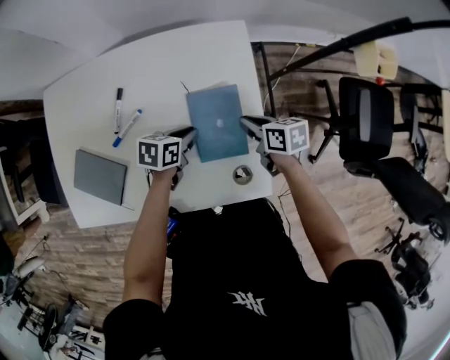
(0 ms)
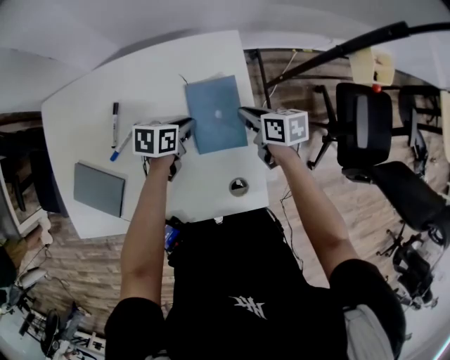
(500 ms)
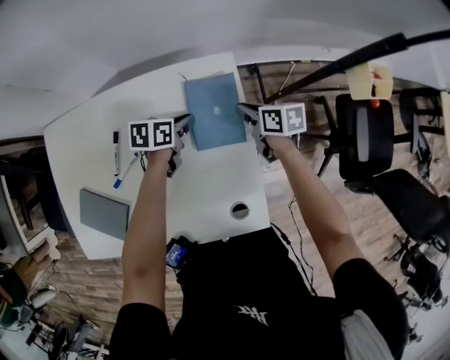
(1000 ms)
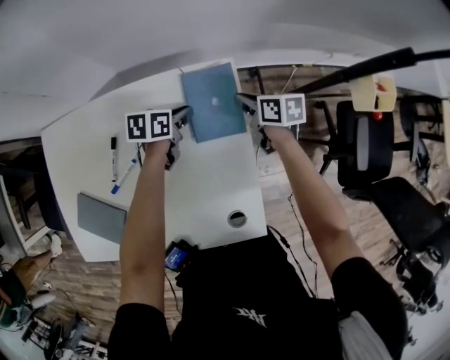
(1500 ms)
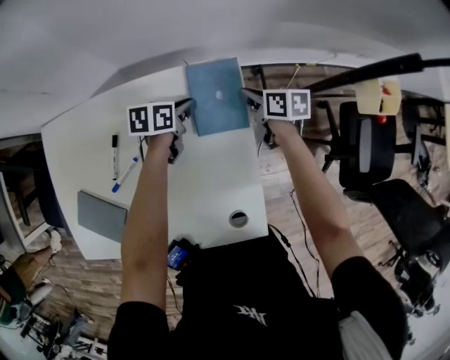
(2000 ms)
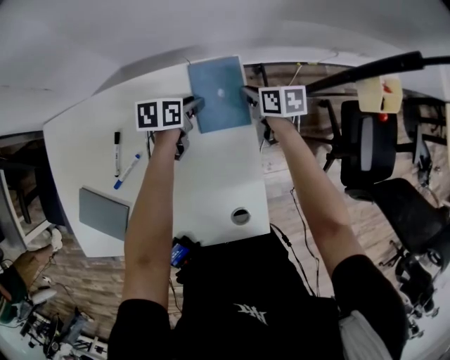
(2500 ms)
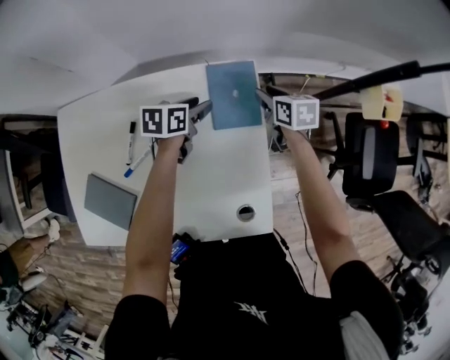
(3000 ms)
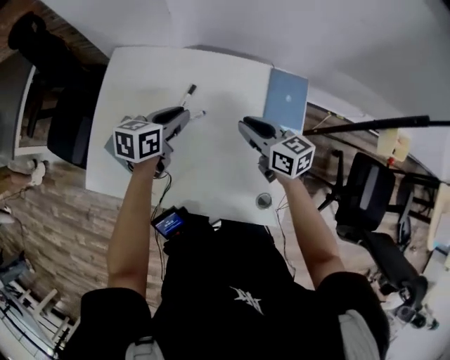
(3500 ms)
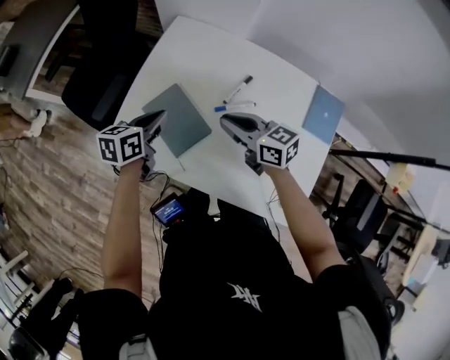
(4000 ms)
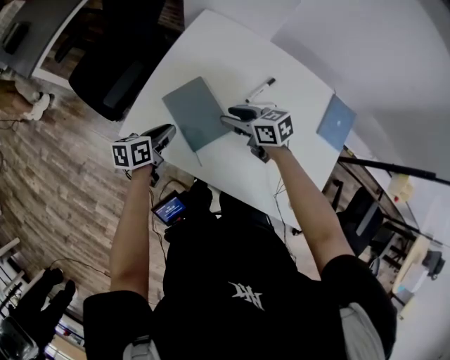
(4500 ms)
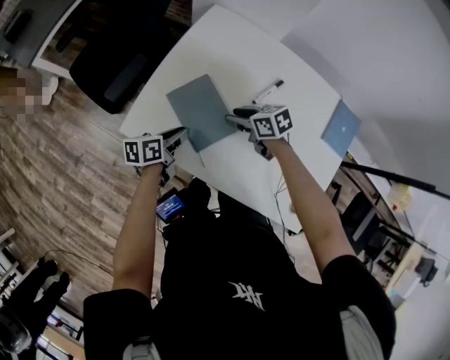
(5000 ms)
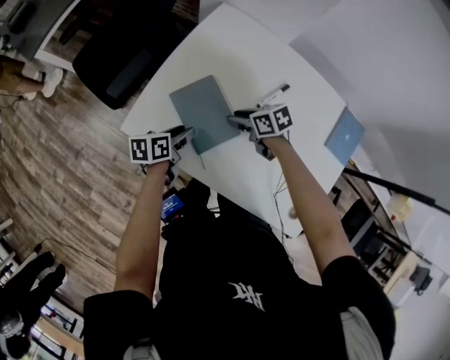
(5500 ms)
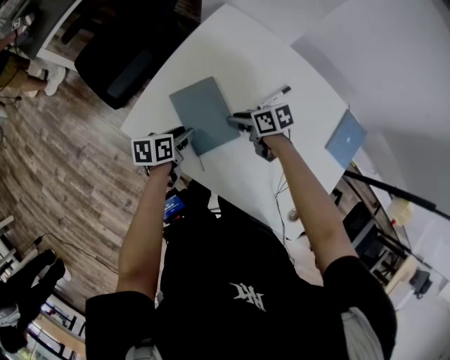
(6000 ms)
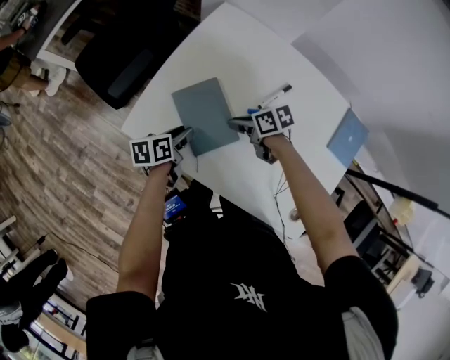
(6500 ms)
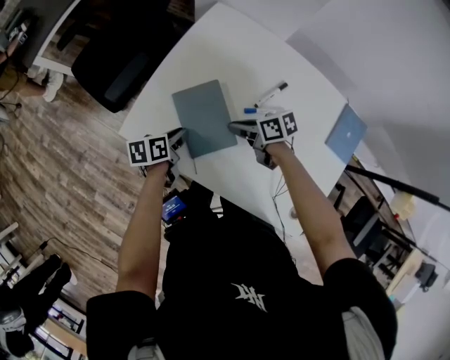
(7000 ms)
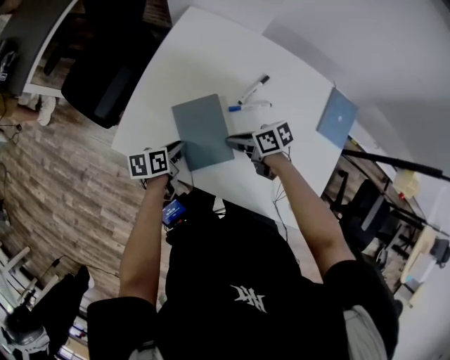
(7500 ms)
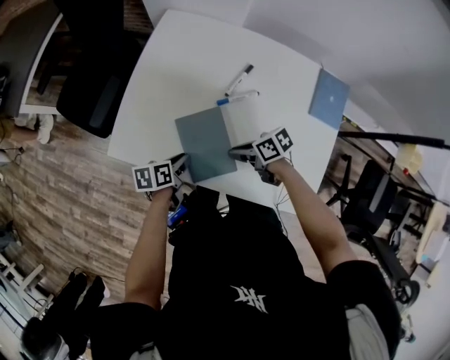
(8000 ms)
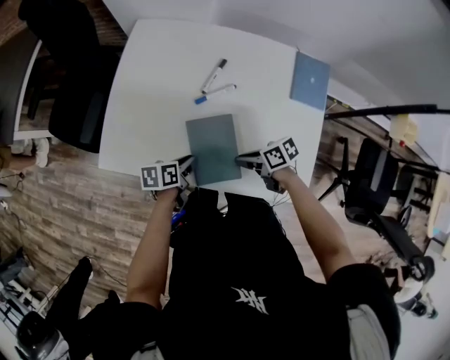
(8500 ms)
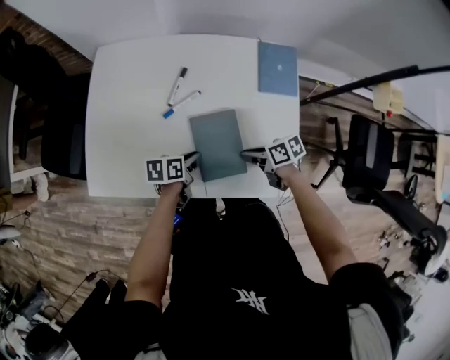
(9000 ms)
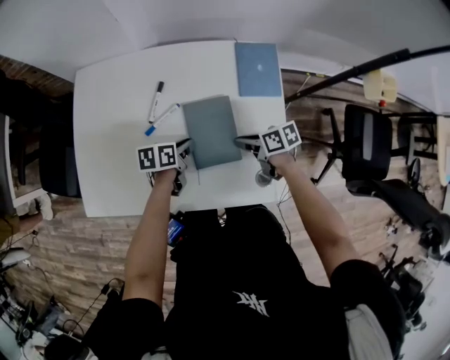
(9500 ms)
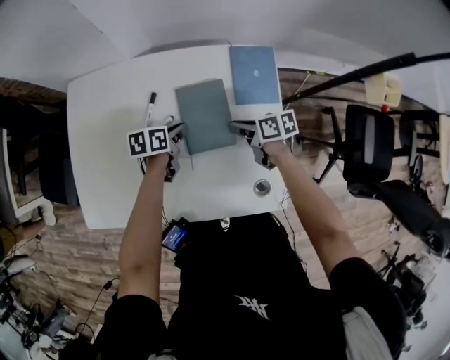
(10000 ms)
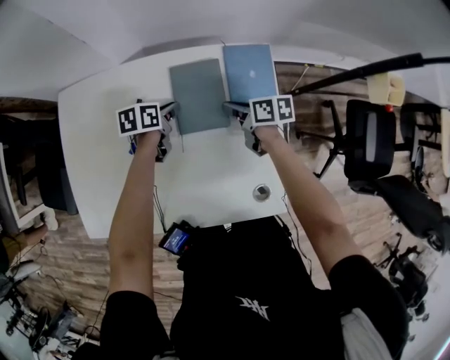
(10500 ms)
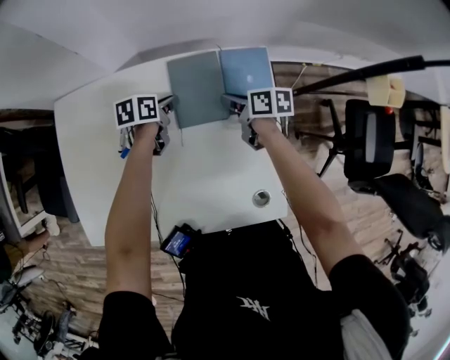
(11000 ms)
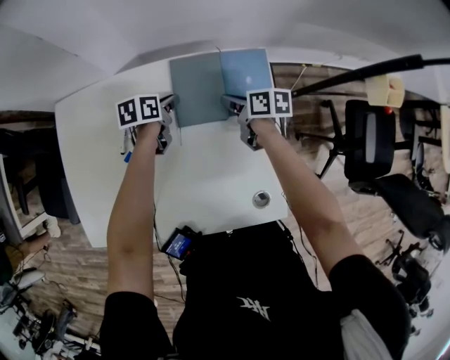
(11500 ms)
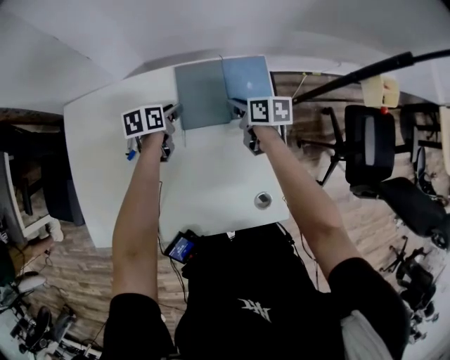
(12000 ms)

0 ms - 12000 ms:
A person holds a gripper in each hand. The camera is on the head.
0 ms - 2000 ms: The two grippers go some 20 cm forward.
2000 ms - 4000 ms: The two grippers travel together, roughly 50 cm. The right gripper rotates some 60 degrees, and opens, then closes once more. The left gripper rotates roughly 40 degrees, and opens, then closes once more.
4000 ms - 6000 ms: The grippers both shift downward by approximately 15 cm. The left gripper rotates some 20 degrees, and opens its fingers. The right gripper swivels approximately 40 degrees, and opens.
6000 ms - 8000 ms: The right gripper shifts by about 15 cm, and closes its fingers. The left gripper ends up roughly 10 cm from where it was, and closes up.
8000 ms - 10000 ms: The left gripper changes place by roughly 30 cm, and turns by some 30 degrees; the right gripper changes place by approximately 25 cm, and swivels approximately 40 degrees.
10000 ms - 12000 ms: Both grippers move forward, roughly 10 cm.

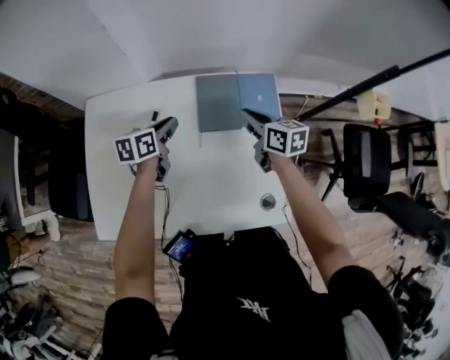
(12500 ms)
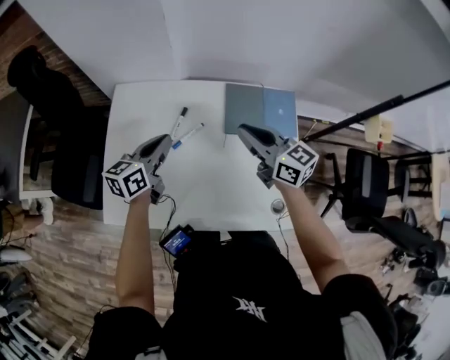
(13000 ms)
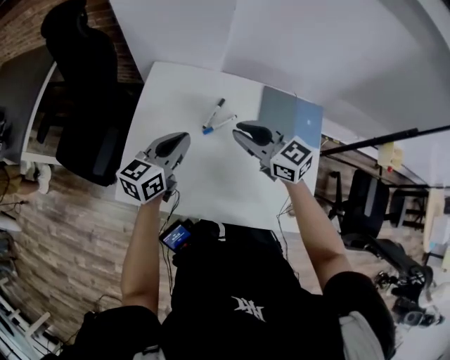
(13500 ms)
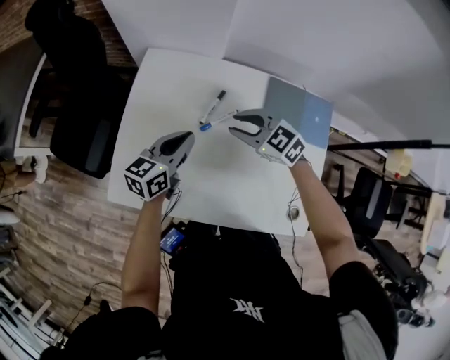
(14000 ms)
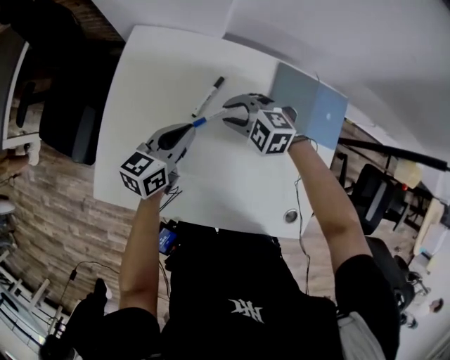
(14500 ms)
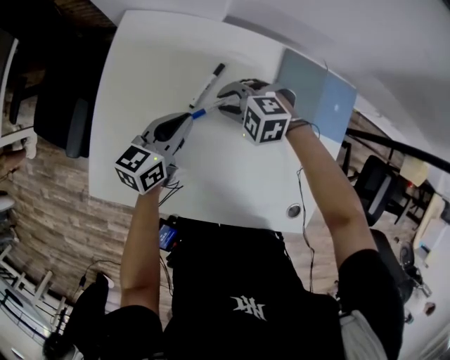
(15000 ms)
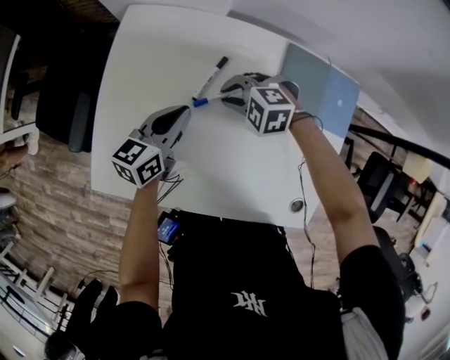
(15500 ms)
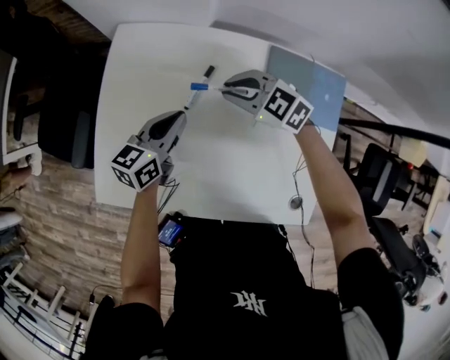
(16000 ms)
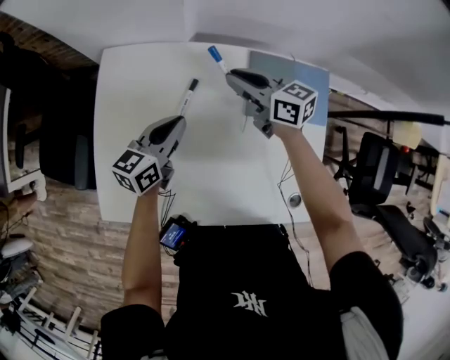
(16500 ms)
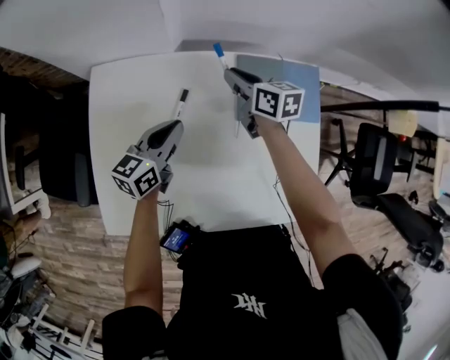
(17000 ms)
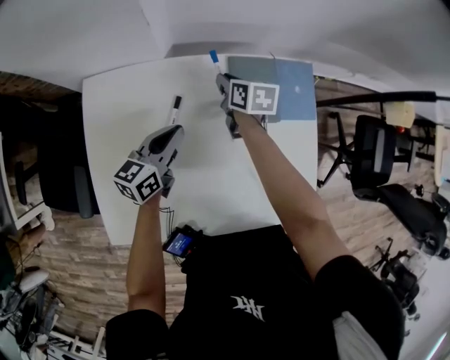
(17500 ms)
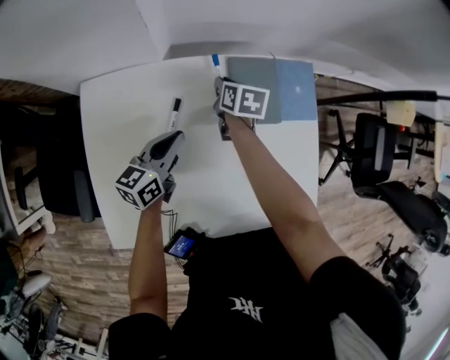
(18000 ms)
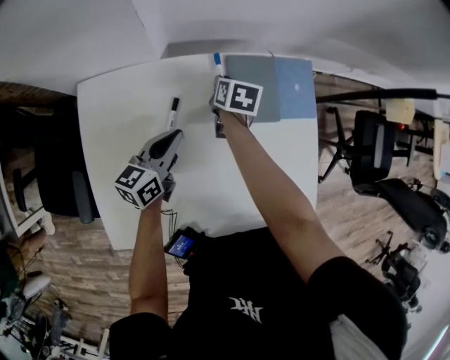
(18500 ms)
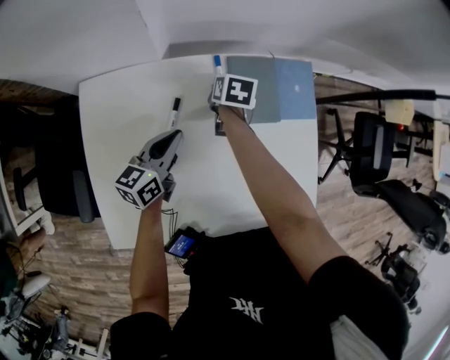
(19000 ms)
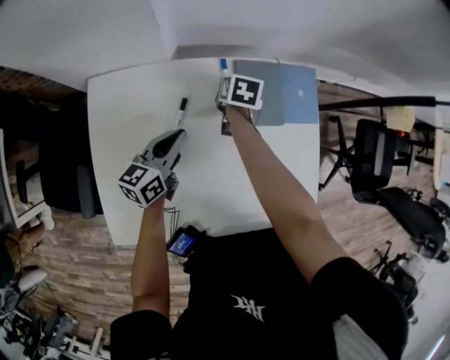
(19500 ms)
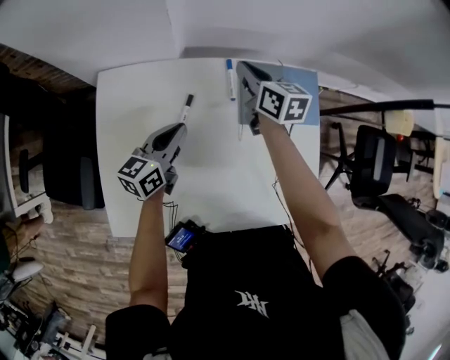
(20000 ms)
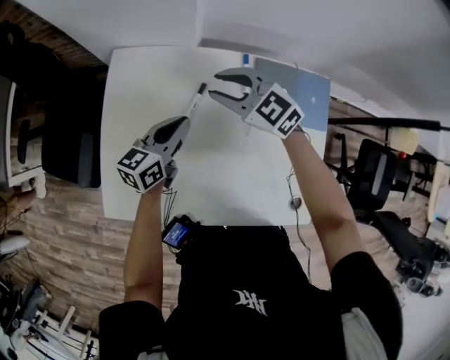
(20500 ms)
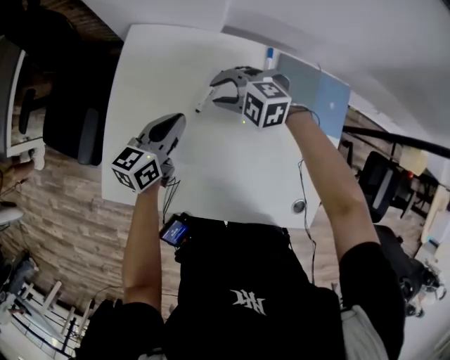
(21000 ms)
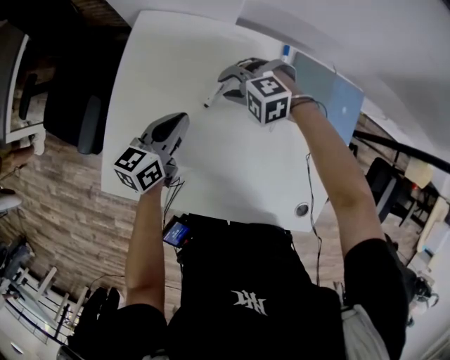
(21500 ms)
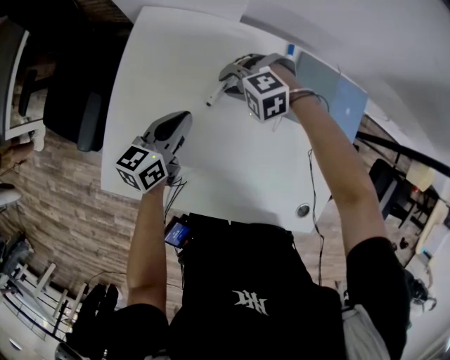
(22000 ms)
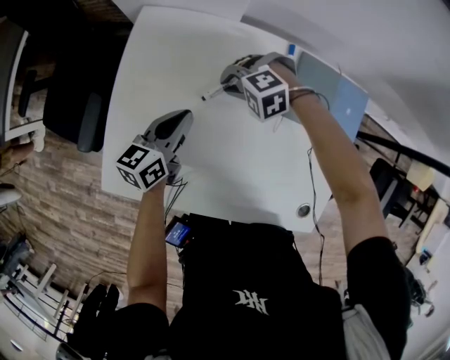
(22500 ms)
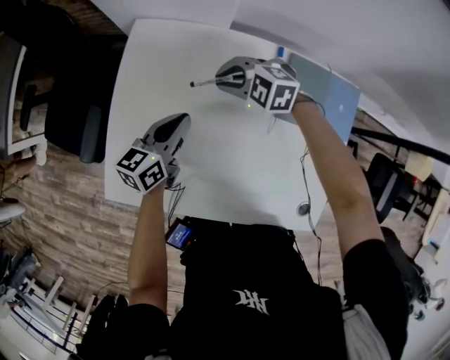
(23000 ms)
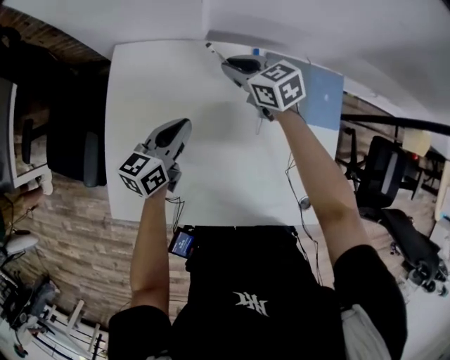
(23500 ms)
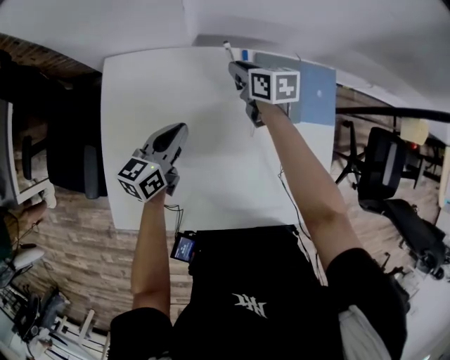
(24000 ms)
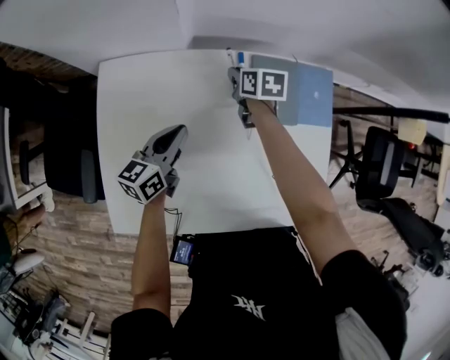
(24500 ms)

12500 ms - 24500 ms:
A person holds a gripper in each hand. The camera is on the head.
12500 ms - 14500 ms: The left gripper moves some 10 cm upward and comes back, while the right gripper changes place by approximately 30 cm, twists roughly 80 degrees counterclockwise, seen from behind, and opens up.
14500 ms - 16500 ms: The right gripper shifts roughly 15 cm to the right, upward and forward, and rotates around the line of its fingers by roughly 60 degrees, clockwise from behind.
16500 ms - 18500 ms: The right gripper shifts some 10 cm downward, and points its fingers approximately 30 degrees further downward.
18500 ms - 20500 ms: The right gripper ends up approximately 20 cm from where it was, and rotates approximately 90 degrees, while the left gripper ends up roughly 5 cm from where it was.
20500 ms - 22500 ms: The right gripper shifts approximately 15 cm downward, and tips its fingers downward by approximately 40 degrees, while the left gripper moves roughly 10 cm.
22500 ms - 24500 ms: The left gripper shifts by roughly 10 cm, while the right gripper travels upward and back again, approximately 10 cm each way, and rotates around the line of its fingers by some 120 degrees, clockwise from behind.

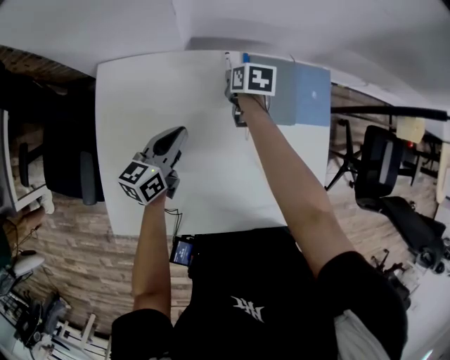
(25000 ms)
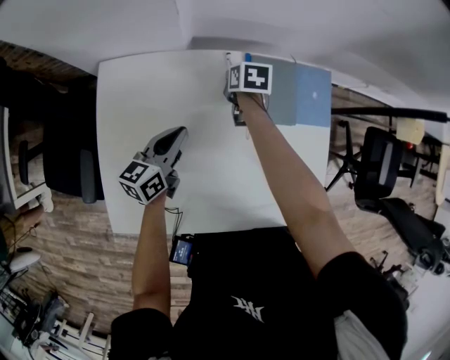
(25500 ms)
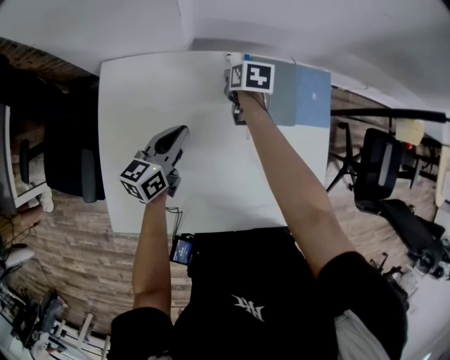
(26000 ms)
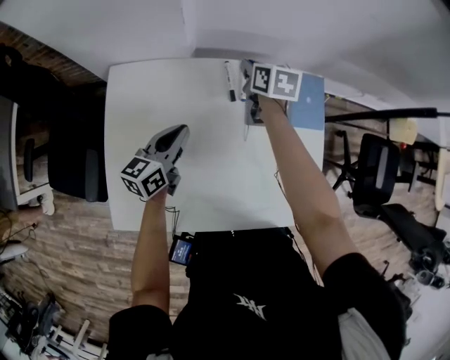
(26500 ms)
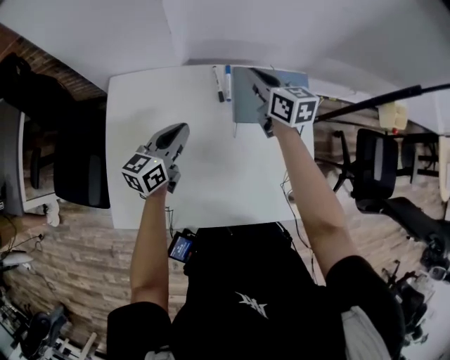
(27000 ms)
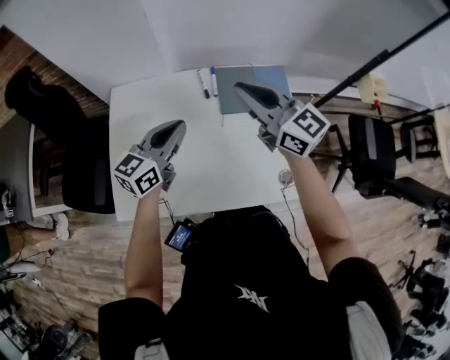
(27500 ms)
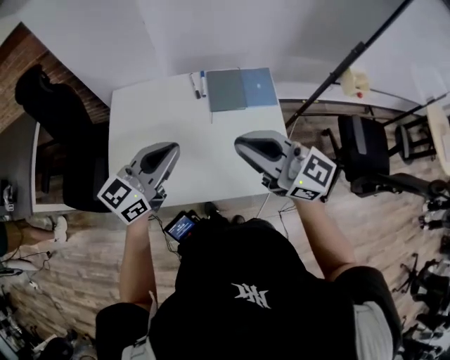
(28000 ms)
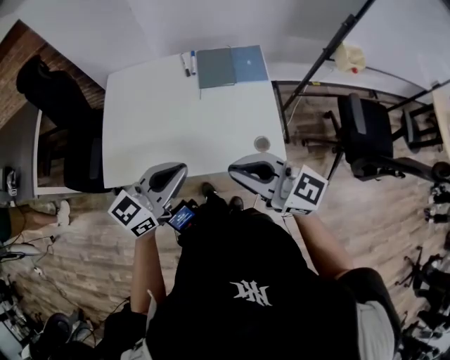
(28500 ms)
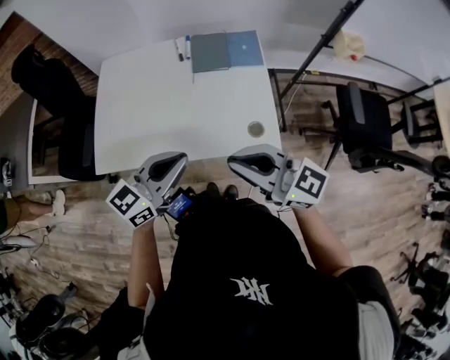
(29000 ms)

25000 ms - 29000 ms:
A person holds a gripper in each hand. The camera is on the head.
25000 ms - 27000 ms: The right gripper travels upward by about 20 cm, and tilts its fingers about 40 degrees upward. The left gripper goes approximately 5 cm upward.
27000 ms - 29000 ms: The grippers both shift backward by about 40 cm. The left gripper rotates approximately 20 degrees; the right gripper turns by some 40 degrees.
